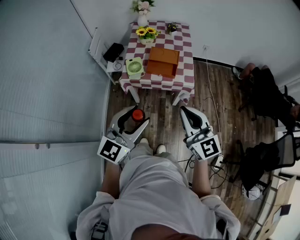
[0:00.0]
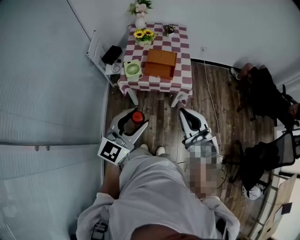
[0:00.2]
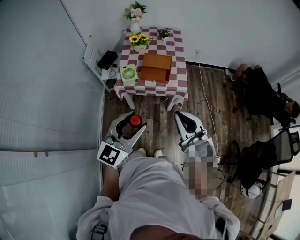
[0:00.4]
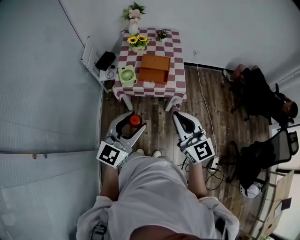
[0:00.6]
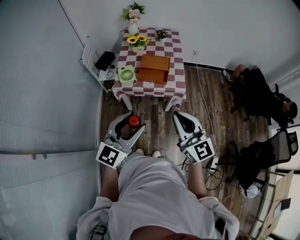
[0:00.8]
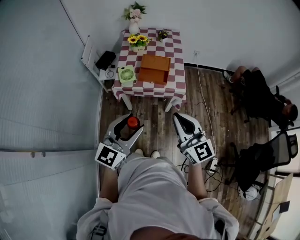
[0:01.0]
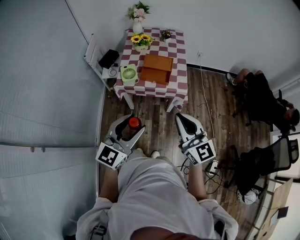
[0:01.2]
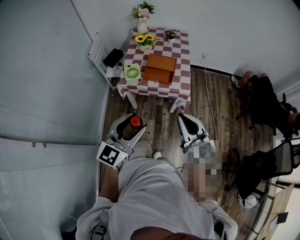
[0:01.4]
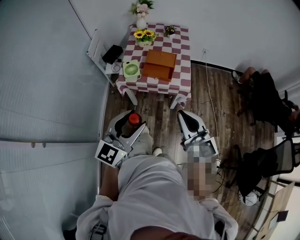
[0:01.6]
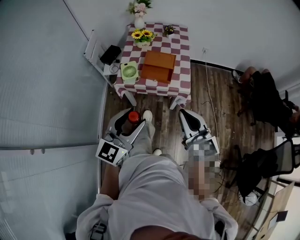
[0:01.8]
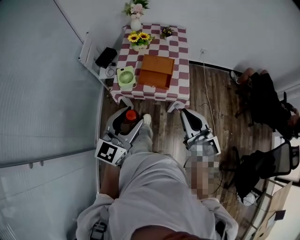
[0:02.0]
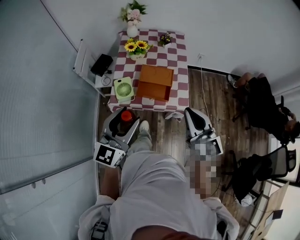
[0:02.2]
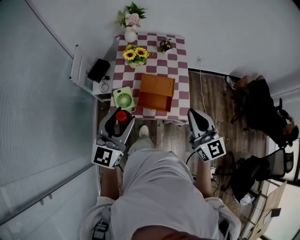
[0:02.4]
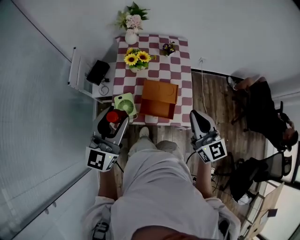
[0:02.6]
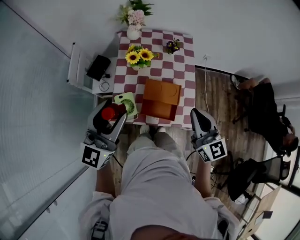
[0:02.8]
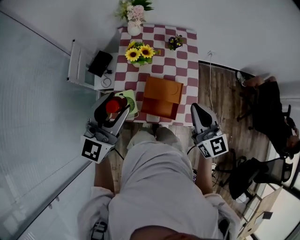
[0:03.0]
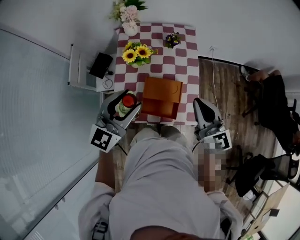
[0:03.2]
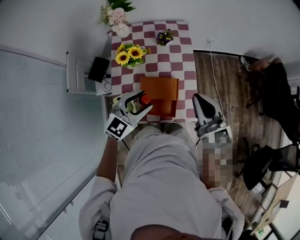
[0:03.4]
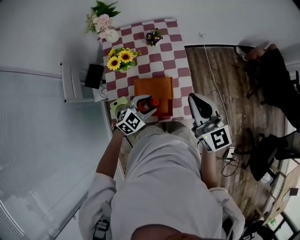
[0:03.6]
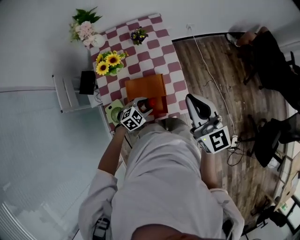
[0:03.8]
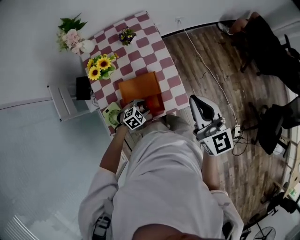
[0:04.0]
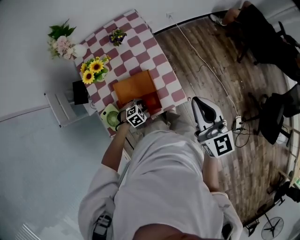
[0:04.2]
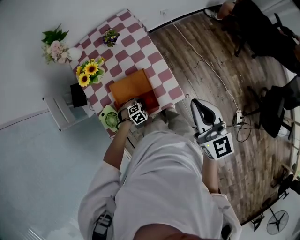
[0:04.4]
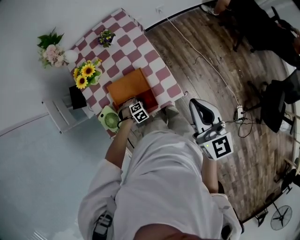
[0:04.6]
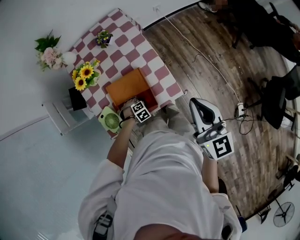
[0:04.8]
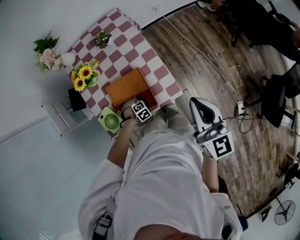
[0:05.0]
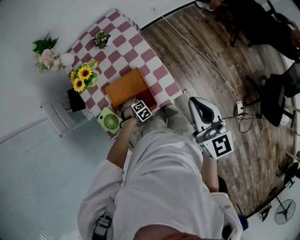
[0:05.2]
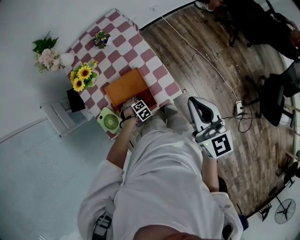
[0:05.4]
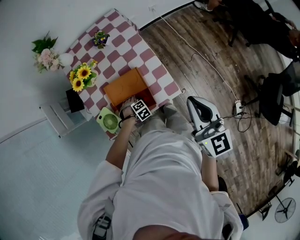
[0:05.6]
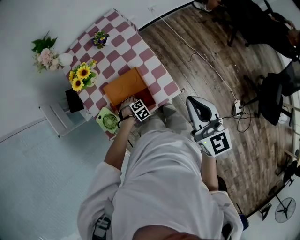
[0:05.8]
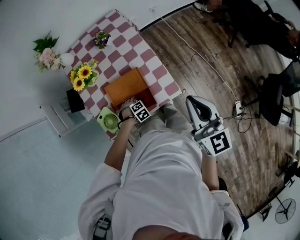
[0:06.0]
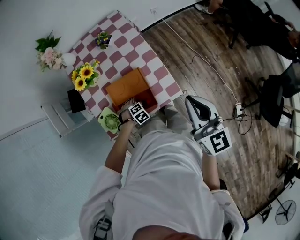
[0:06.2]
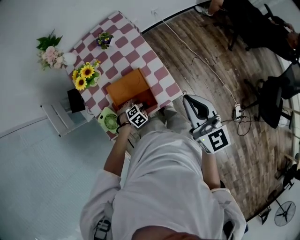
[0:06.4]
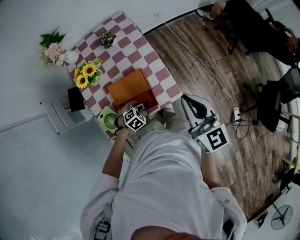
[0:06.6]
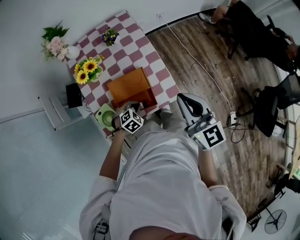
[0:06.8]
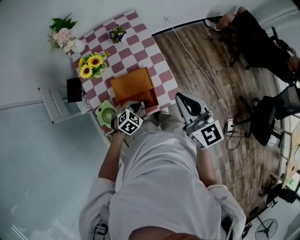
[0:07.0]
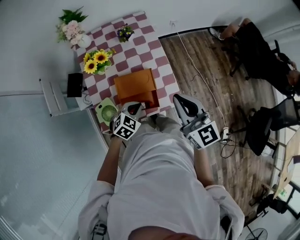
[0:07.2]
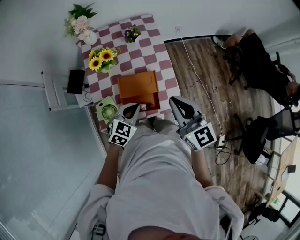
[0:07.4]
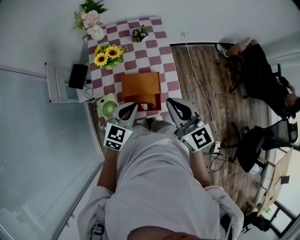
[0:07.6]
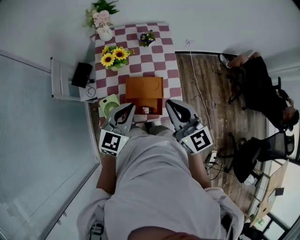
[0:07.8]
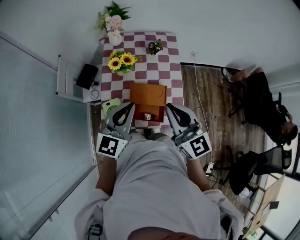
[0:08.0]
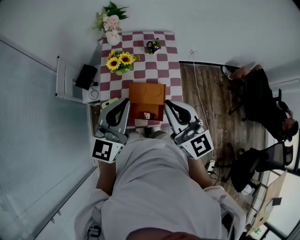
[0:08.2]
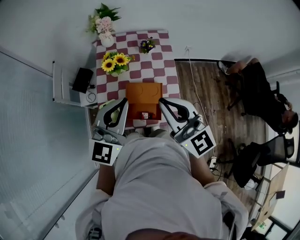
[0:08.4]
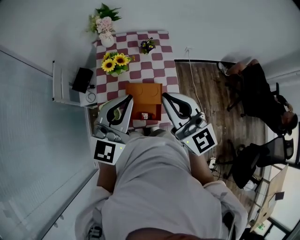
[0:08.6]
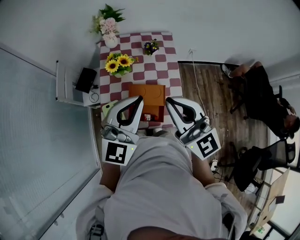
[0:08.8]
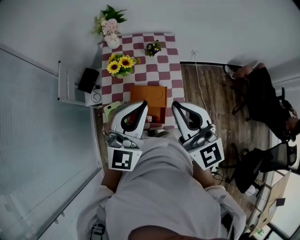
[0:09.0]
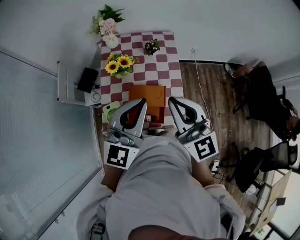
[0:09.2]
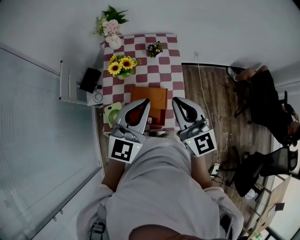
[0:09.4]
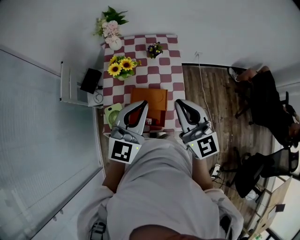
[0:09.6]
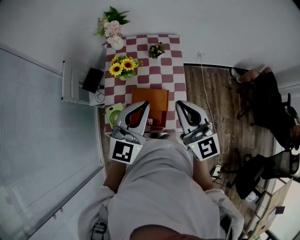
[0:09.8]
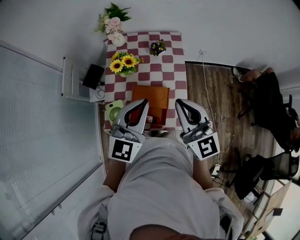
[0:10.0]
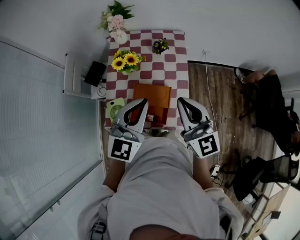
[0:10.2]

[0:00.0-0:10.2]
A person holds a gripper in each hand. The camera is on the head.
0:00.0 to 0:01.4: The grippers stay close to where they were, moving slightly.
0:01.4 to 0:03.0: The two grippers travel together, forward, roughly 50 cm.
0:03.0 to 0:04.4: The right gripper ends up approximately 20 cm from where it was, and turns by approximately 30 degrees, while the left gripper heads downward, covering approximately 50 cm, and angles its fingers downward, by approximately 80 degrees.
0:04.4 to 0:05.8: The grippers stay close to where they were, moving slightly.
0:05.8 to 0:07.2: The left gripper travels upward by some 20 cm, tilts its fingers about 40 degrees upward, and closes its fingers, while the right gripper shifts by about 10 cm.
0:07.2 to 0:08.8: The left gripper goes approximately 30 cm upward, and angles its fingers upward, by some 50 degrees, while the right gripper is displaced upward and to the left by roughly 15 cm, and rotates roughly 30 degrees.
0:08.8 to 0:10.2: The left gripper moves roughly 5 cm, while the right gripper travels to the right and downward by about 10 cm.

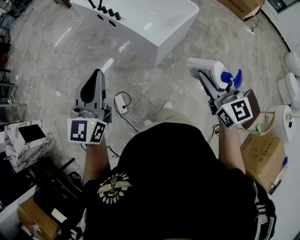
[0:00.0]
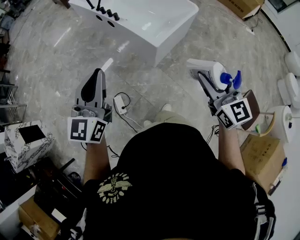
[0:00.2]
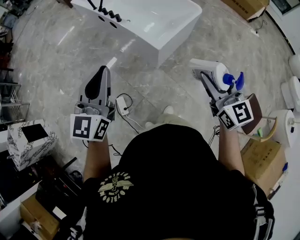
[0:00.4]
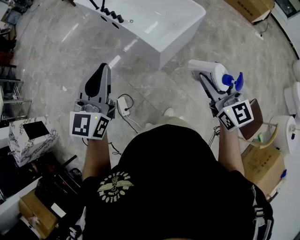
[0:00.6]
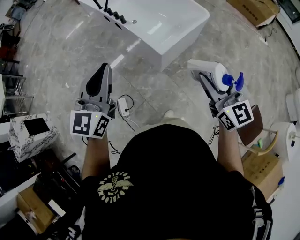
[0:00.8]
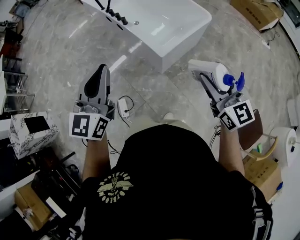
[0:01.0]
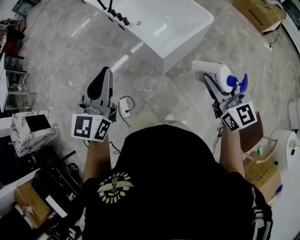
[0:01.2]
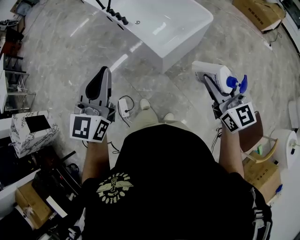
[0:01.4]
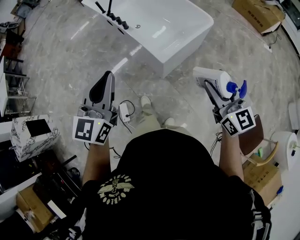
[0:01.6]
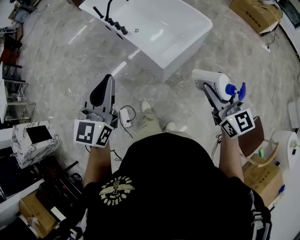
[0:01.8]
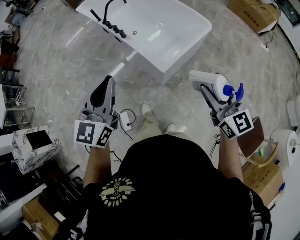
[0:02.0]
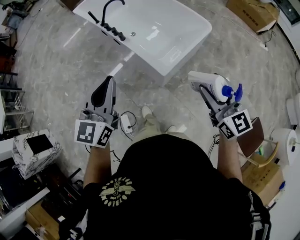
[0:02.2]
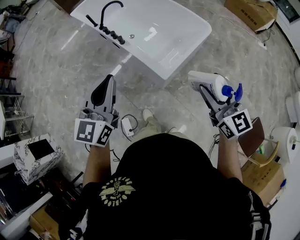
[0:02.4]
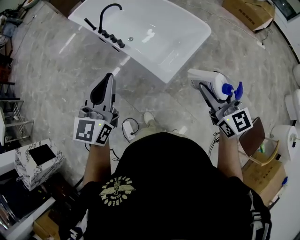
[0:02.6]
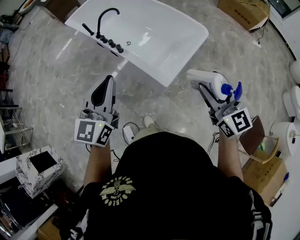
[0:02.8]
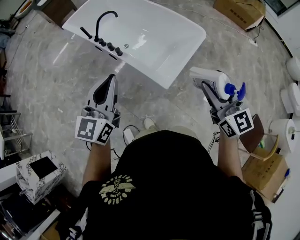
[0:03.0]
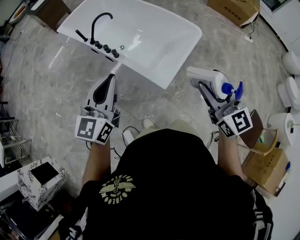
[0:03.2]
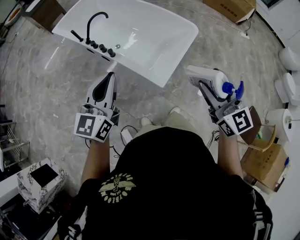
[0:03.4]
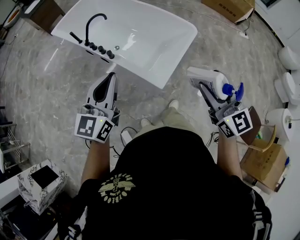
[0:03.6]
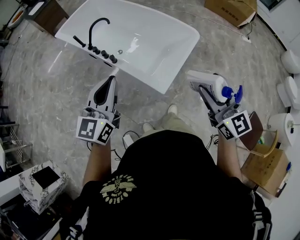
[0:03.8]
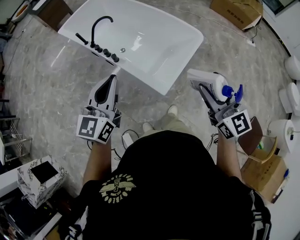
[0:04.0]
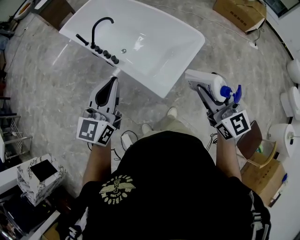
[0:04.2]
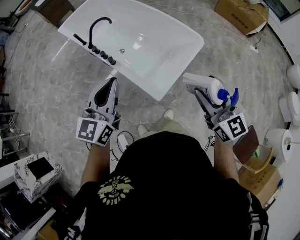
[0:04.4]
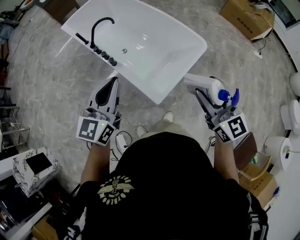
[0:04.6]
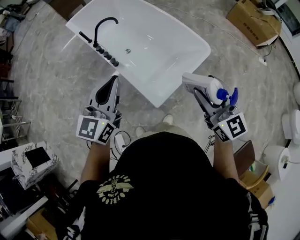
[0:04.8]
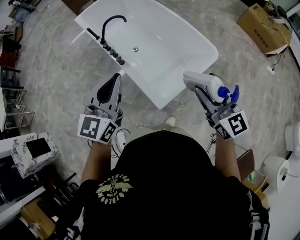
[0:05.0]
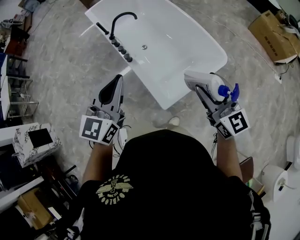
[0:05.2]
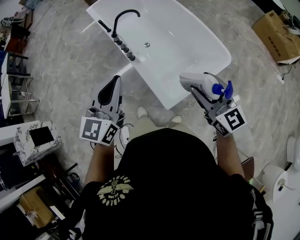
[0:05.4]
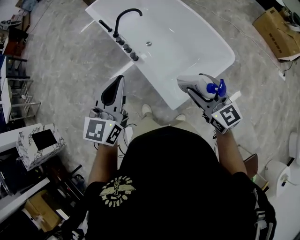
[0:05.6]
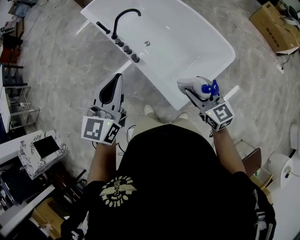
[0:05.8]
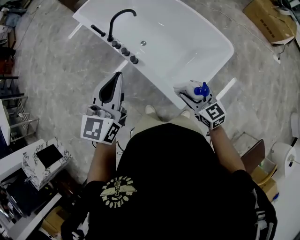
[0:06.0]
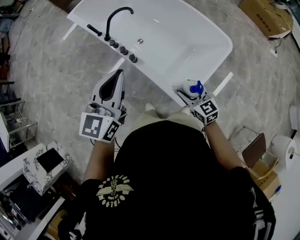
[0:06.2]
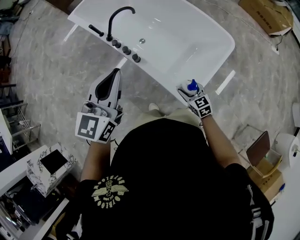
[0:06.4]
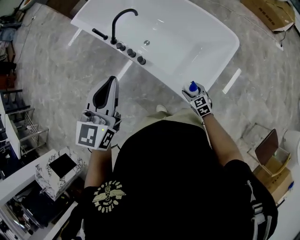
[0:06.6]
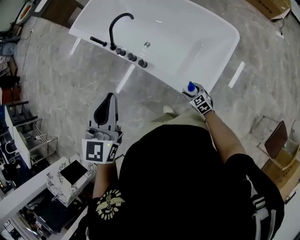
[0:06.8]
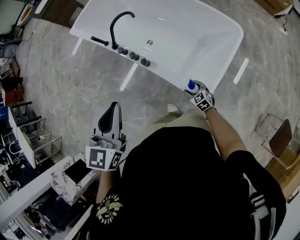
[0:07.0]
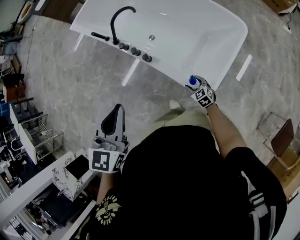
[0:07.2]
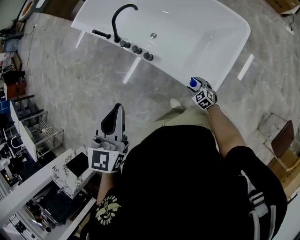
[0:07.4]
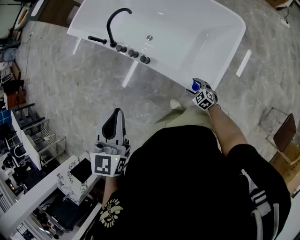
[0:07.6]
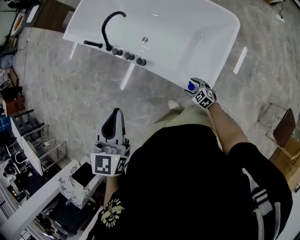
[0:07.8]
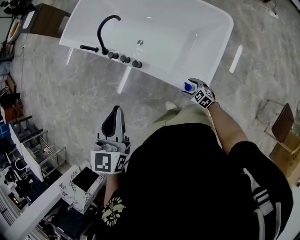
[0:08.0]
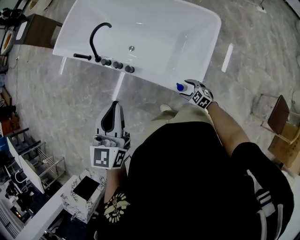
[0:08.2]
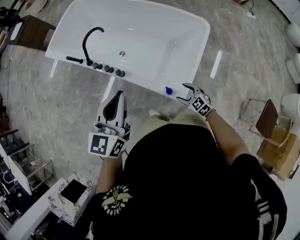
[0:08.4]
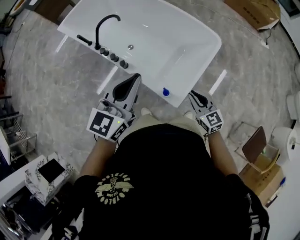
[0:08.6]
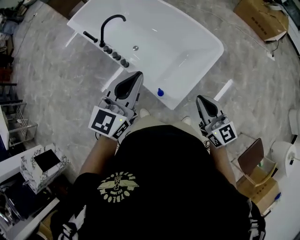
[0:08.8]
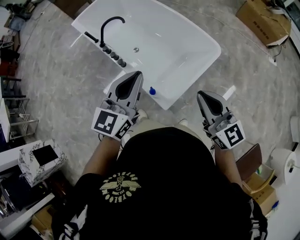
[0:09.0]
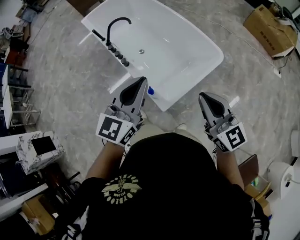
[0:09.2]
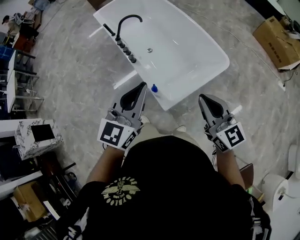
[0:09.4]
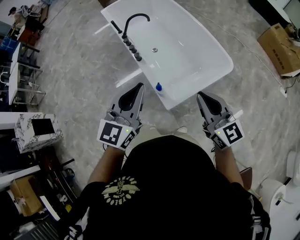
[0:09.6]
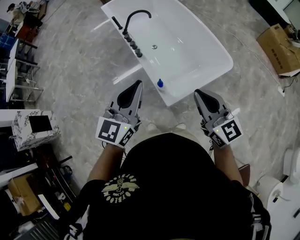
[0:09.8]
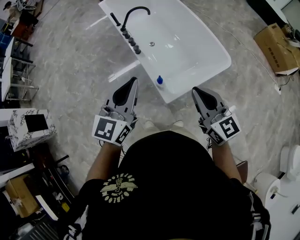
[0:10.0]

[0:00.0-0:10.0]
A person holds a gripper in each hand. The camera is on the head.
0:00.0 to 0:01.4: The right gripper moves forward and to the right, approximately 15 cm. Meanwhile the left gripper heads to the right and forward, covering some 15 cm.
0:01.4 to 0:02.8: The left gripper goes about 25 cm forward. The right gripper heads forward and to the left, covering approximately 20 cm.
0:02.8 to 0:04.2: Both grippers move forward, approximately 5 cm.
0:04.2 to 0:05.8: The right gripper heads forward and downward, covering approximately 25 cm, and changes its angle by approximately 20 degrees, while the left gripper goes some 15 cm forward.
0:05.8 to 0:07.2: The left gripper goes approximately 10 cm to the left and downward. The right gripper is displaced downward by roughly 35 cm, and rotates some 30 degrees.
0:07.2 to 0:08.6: The left gripper moves to the right, about 15 cm, and rotates some 20 degrees. The right gripper is displaced upward and to the right by roughly 30 cm, turns by some 20 degrees, and closes.
0:08.6 to 0:10.0: The right gripper shifts about 20 cm upward, and swivels roughly 30 degrees, while the left gripper ends up approximately 15 cm from where it was, and turns by roughly 30 degrees.

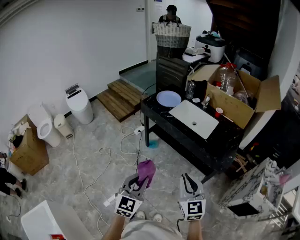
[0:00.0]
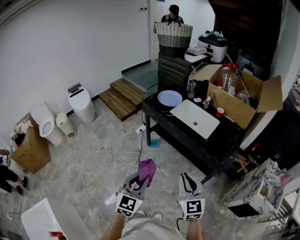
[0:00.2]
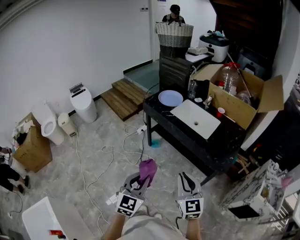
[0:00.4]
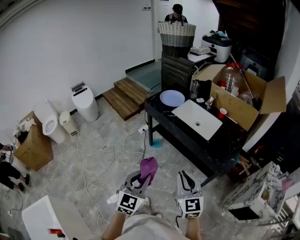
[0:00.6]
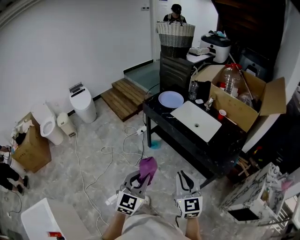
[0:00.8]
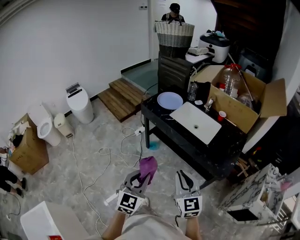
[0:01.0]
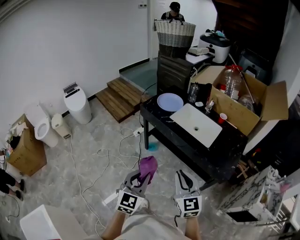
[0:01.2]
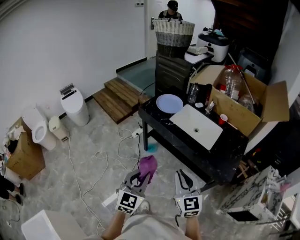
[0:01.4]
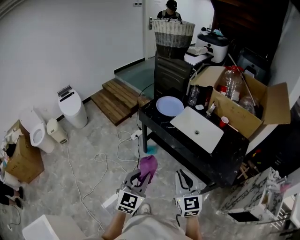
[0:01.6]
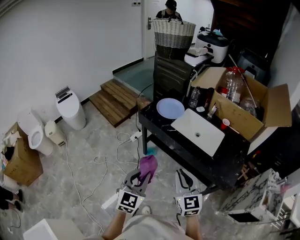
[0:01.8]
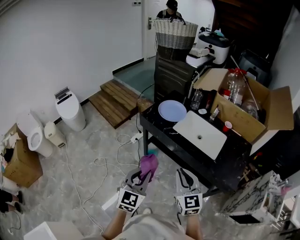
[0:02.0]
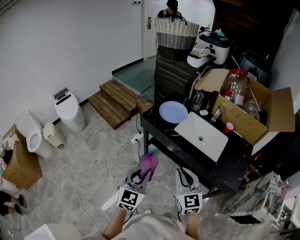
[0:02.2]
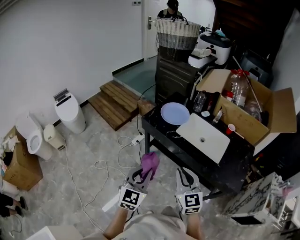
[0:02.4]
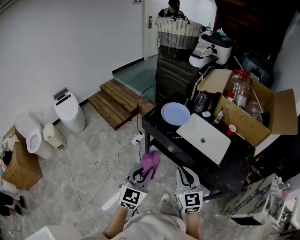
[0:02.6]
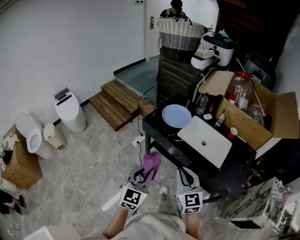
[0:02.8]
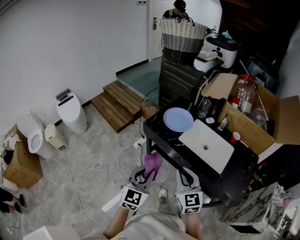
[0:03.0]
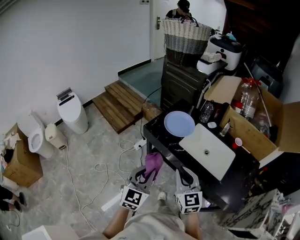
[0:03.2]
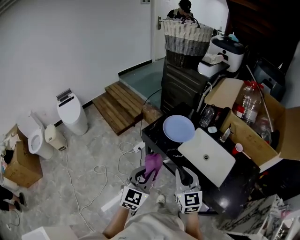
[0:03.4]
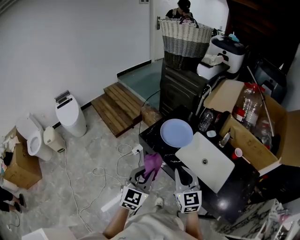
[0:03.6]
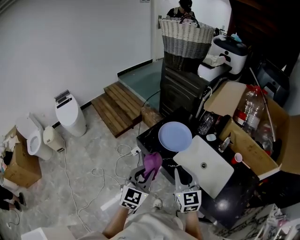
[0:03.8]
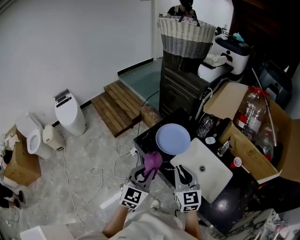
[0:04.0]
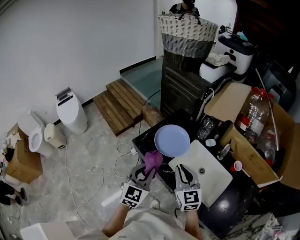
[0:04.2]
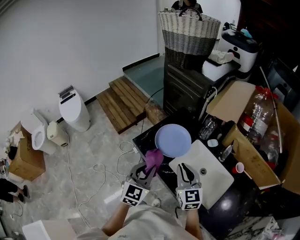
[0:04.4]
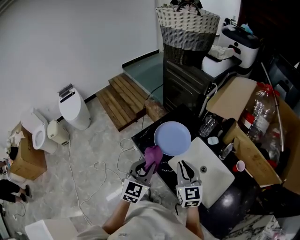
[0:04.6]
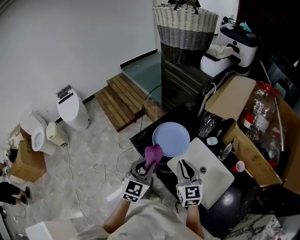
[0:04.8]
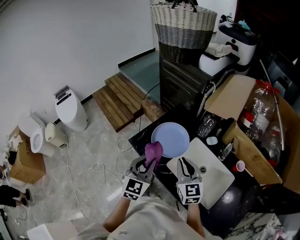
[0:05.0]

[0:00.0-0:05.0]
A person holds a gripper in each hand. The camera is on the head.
0:00.0 to 0:01.6: The grippers both shift forward by some 20 cm.
0:01.6 to 0:03.4: The grippers both shift forward by approximately 25 cm.
0:03.4 to 0:05.0: Both grippers travel together forward and to the right, some 25 cm.
